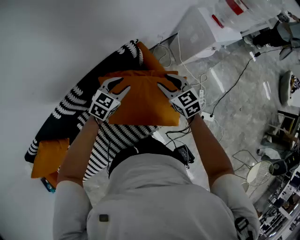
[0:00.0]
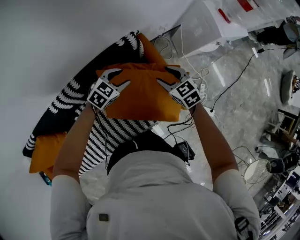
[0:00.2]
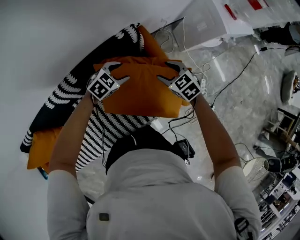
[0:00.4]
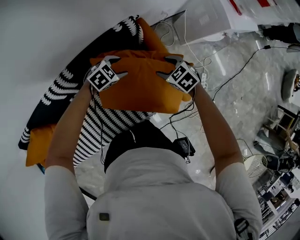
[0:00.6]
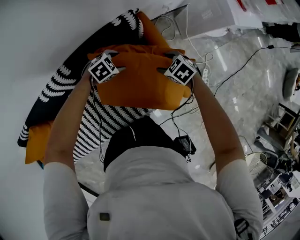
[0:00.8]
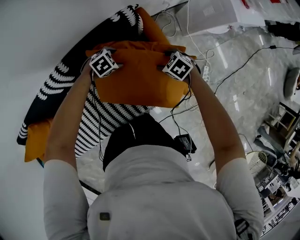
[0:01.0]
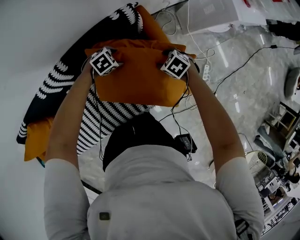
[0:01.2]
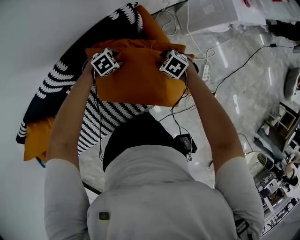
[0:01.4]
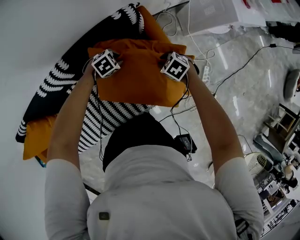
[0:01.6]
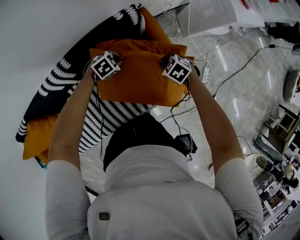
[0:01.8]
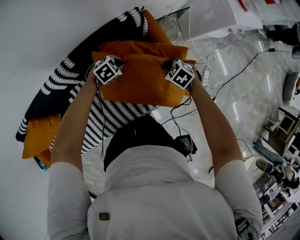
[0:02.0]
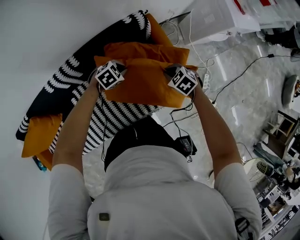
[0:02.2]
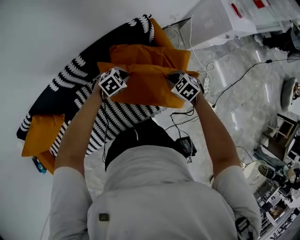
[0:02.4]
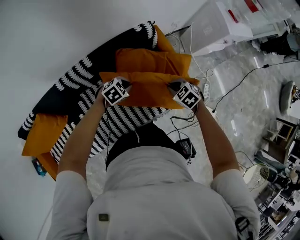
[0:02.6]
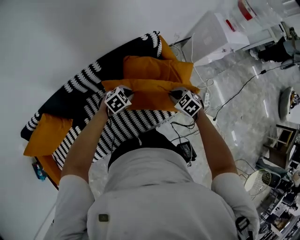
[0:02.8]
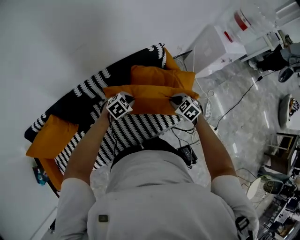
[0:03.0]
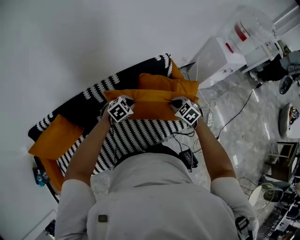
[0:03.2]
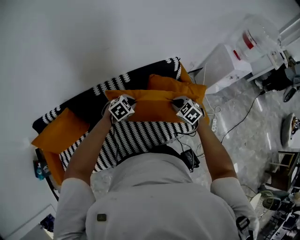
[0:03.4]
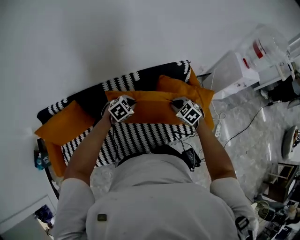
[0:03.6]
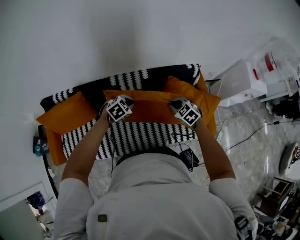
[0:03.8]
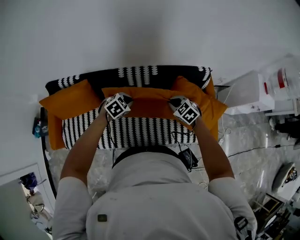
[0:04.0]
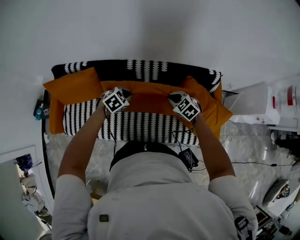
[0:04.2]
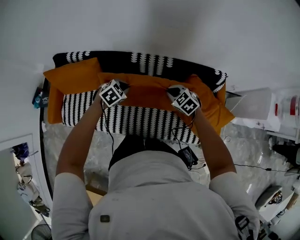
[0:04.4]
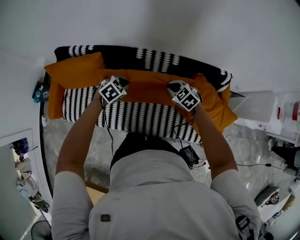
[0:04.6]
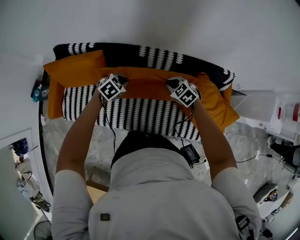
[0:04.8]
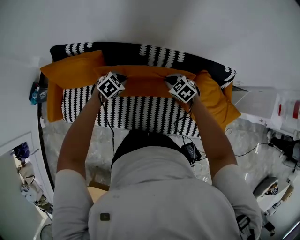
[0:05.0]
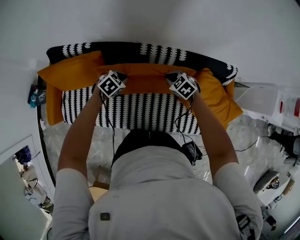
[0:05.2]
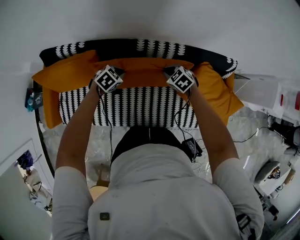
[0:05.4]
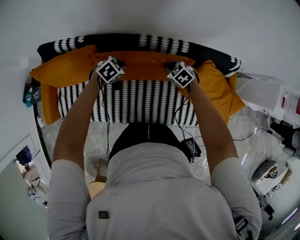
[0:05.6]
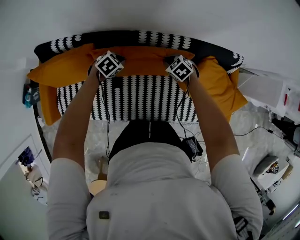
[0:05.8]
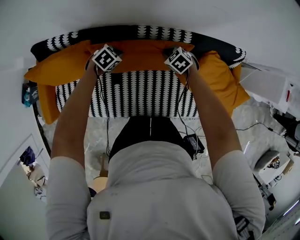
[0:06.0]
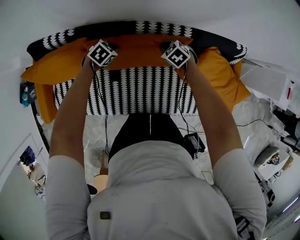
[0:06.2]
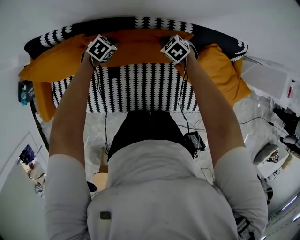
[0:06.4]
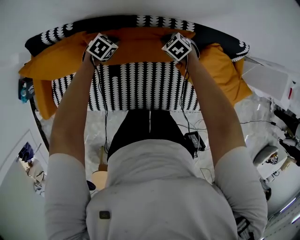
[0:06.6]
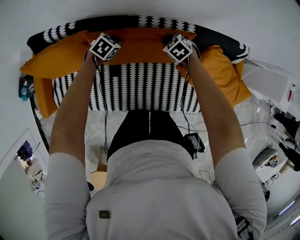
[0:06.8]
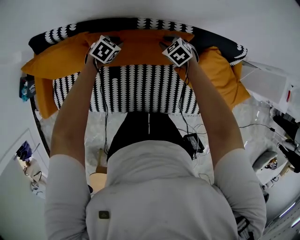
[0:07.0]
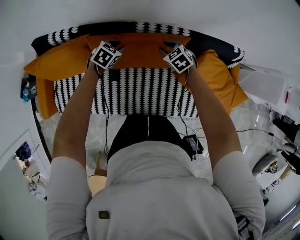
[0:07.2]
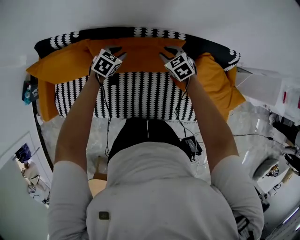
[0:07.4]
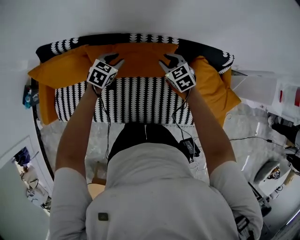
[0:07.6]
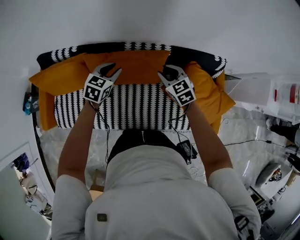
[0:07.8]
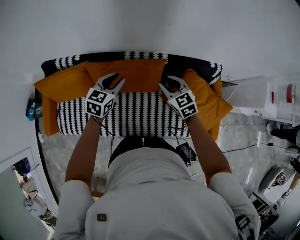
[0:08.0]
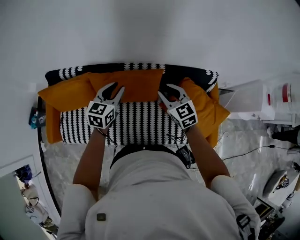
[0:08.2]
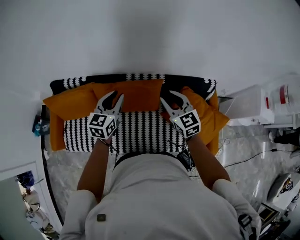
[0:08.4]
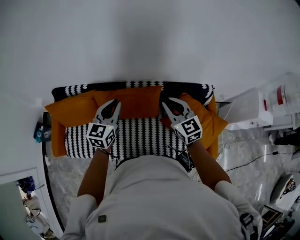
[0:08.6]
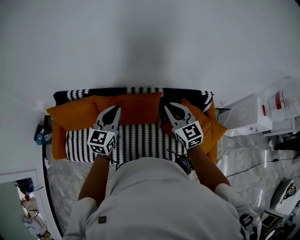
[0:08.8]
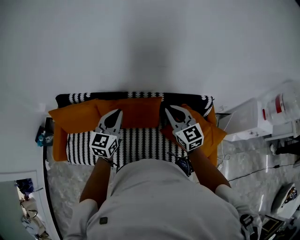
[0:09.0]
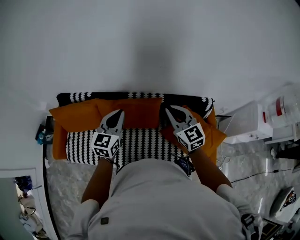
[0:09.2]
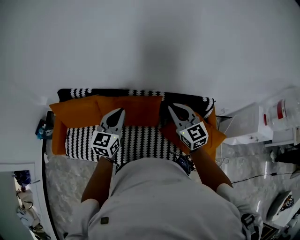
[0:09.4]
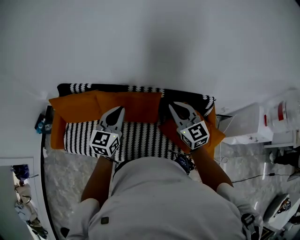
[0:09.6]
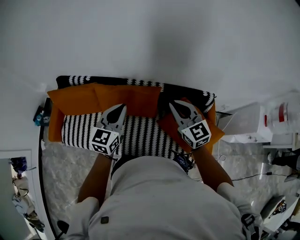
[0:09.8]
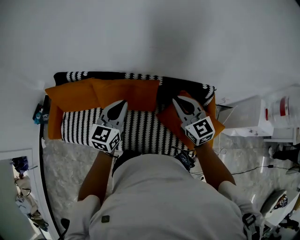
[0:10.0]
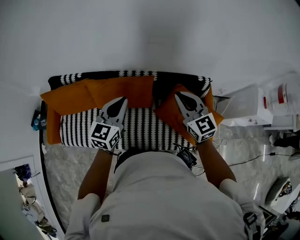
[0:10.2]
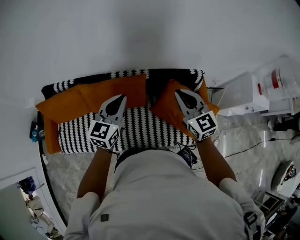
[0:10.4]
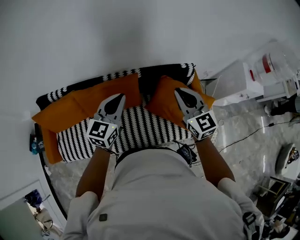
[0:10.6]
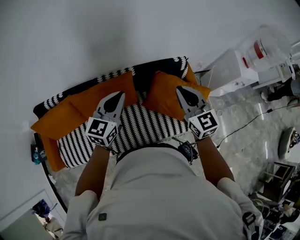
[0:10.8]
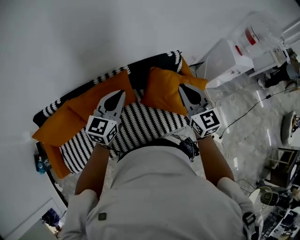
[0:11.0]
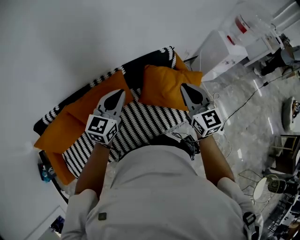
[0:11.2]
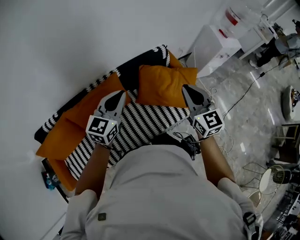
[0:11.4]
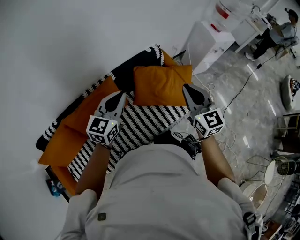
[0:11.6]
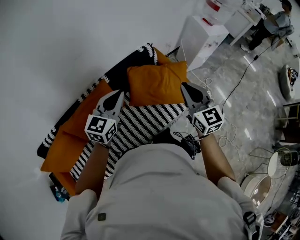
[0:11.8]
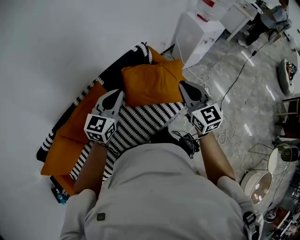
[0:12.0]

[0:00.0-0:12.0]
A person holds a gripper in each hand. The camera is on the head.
0:00.0 to 0:01.6: Both grippers travel together downward, about 25 cm. The left gripper turns by some 40 degrees, and opens, then closes once more; the right gripper tilts its fingers roughly 30 degrees downward, and opens and closes again.
0:01.6 to 0:03.0: The right gripper ends up about 25 cm from where it was, and changes its angle by approximately 20 degrees. Meanwhile the left gripper ends up roughly 30 cm from where it was.
0:03.0 to 0:04.4: The right gripper ends up roughly 30 cm from where it was, and swivels some 40 degrees; the left gripper shifts by roughly 30 cm, and swivels about 40 degrees.
0:04.4 to 0:06.0: The right gripper changes place by some 25 cm. Meanwhile the left gripper moves roughly 25 cm.
0:06.0 to 0:07.6: Both grippers move upward, approximately 15 cm. The left gripper turns by roughly 30 degrees, and opens up; the right gripper swivels approximately 20 degrees, and opens.
0:07.6 to 0:09.0: The grippers both shift upward and backward by approximately 30 cm. The left gripper tilts its fingers roughly 40 degrees upward, and closes up. Meanwhile the right gripper tilts its fingers about 30 degrees upward, and closes up.
0:09.0 to 0:10.4: Both grippers travel together to the right, about 10 cm.
0:10.4 to 0:12.0: The left gripper changes place by some 20 cm, and rotates some 40 degrees, while the right gripper moves about 25 cm, and turns by roughly 40 degrees.

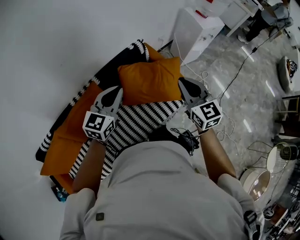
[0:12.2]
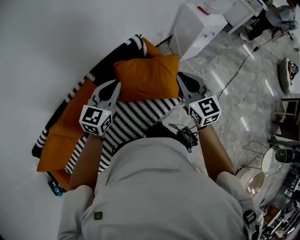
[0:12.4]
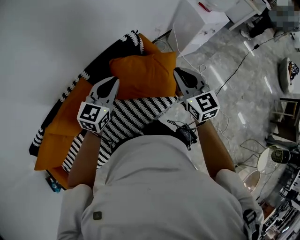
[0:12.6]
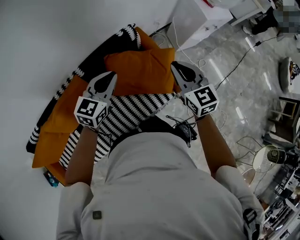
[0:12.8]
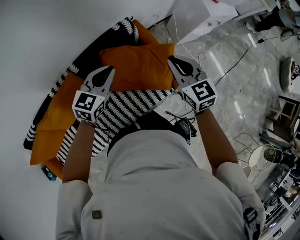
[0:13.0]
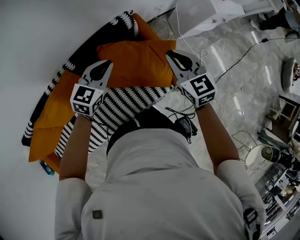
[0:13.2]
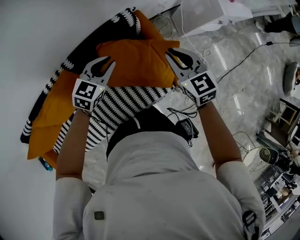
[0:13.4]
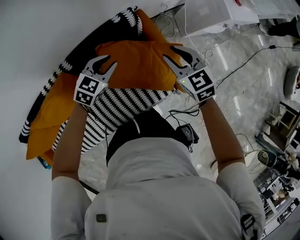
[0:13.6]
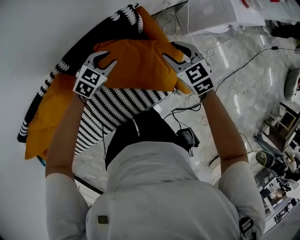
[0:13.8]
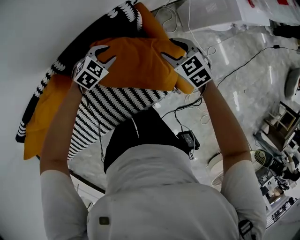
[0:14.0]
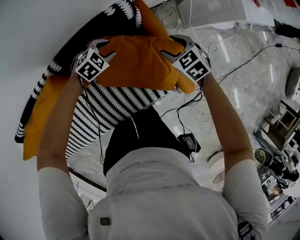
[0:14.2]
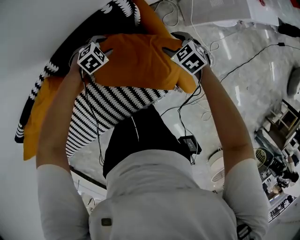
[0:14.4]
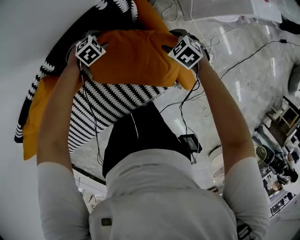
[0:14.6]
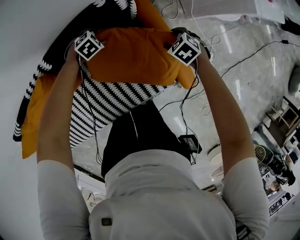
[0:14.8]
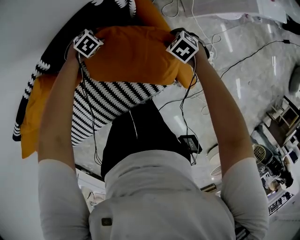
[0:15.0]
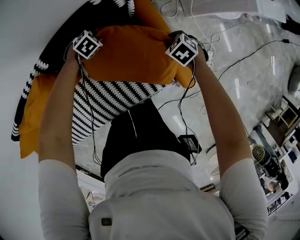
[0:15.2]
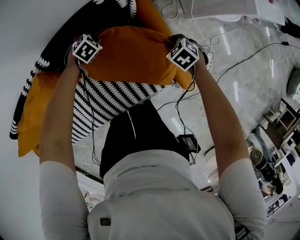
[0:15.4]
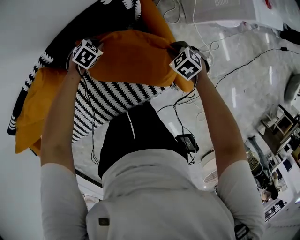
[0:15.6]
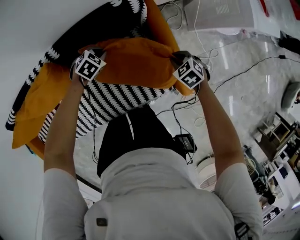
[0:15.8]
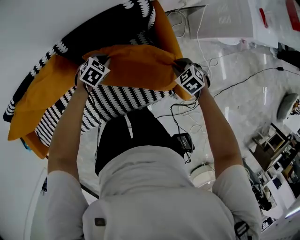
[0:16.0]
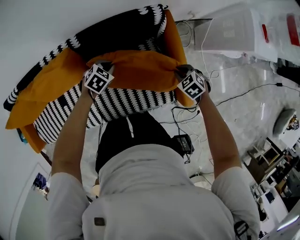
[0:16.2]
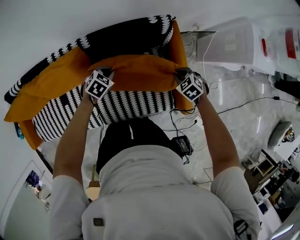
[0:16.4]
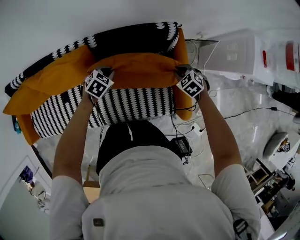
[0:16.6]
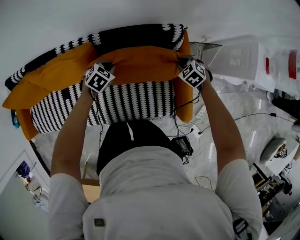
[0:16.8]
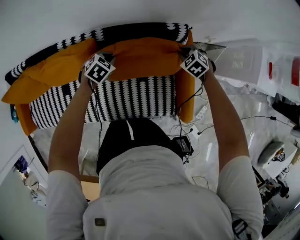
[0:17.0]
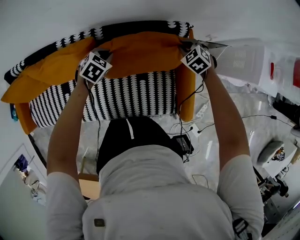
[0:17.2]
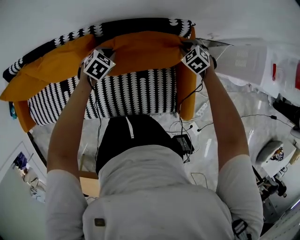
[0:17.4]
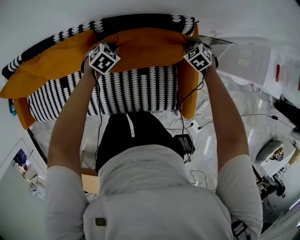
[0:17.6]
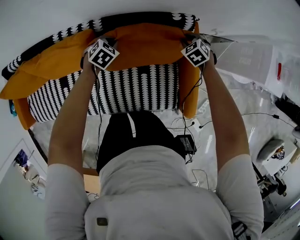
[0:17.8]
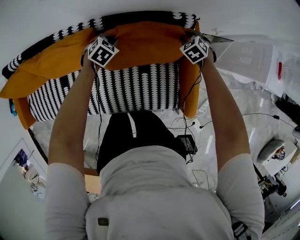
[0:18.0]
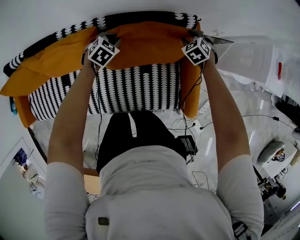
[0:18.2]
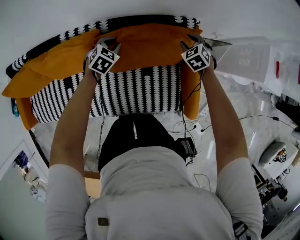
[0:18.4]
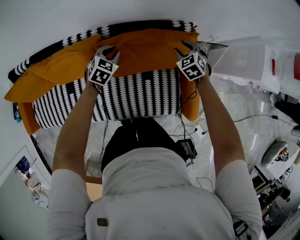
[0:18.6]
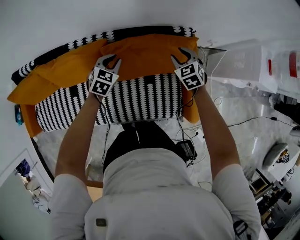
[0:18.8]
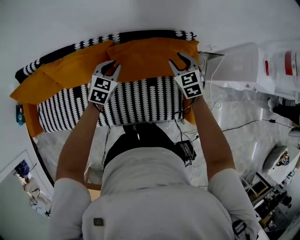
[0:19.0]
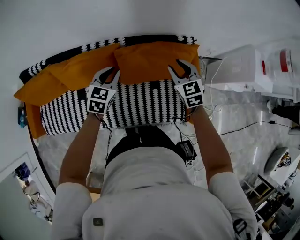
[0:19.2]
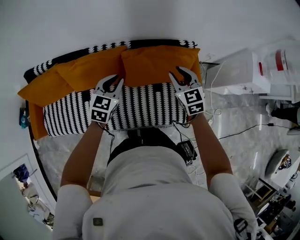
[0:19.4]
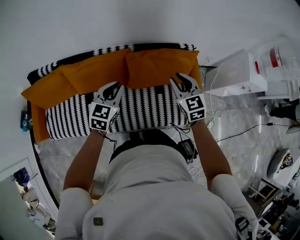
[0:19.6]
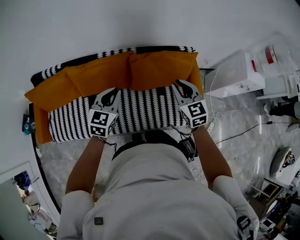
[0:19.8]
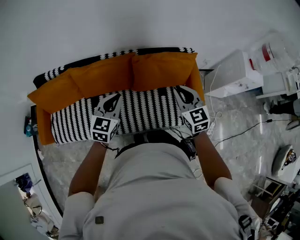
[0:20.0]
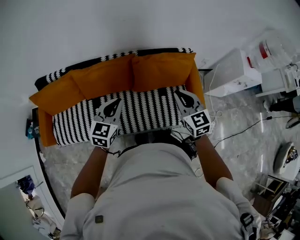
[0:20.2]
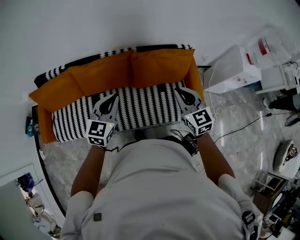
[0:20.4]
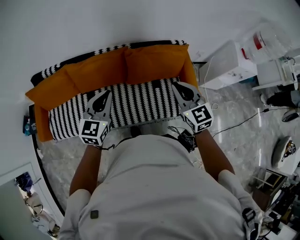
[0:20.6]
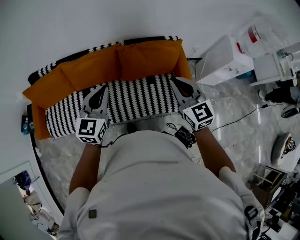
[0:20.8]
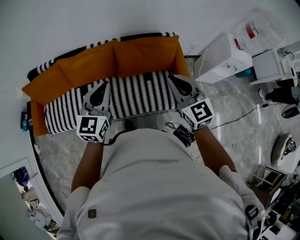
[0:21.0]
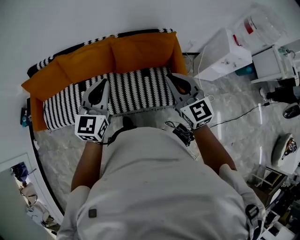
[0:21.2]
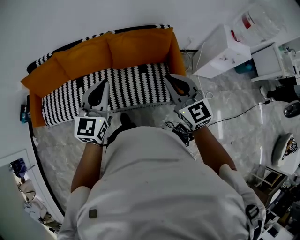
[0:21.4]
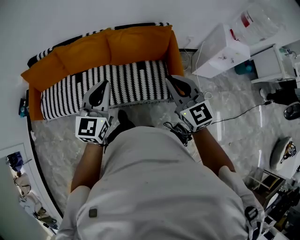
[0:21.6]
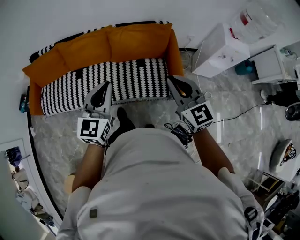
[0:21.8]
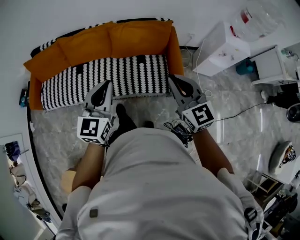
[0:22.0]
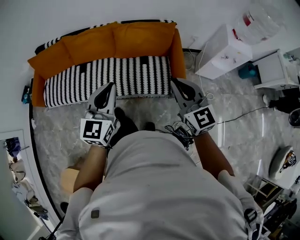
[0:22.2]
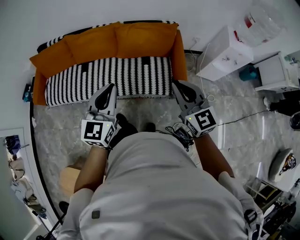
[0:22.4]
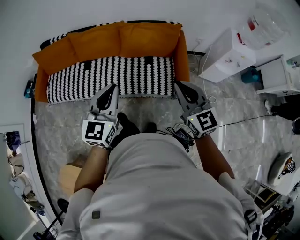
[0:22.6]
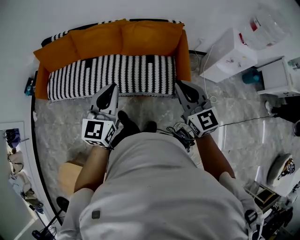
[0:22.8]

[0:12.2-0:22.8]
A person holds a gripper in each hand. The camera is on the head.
0:12.2 to 0:13.8: The left gripper heads downward and forward, covering approximately 40 cm, points its fingers some 30 degrees further downward, and opens its fingers. The right gripper heads forward and downward, covering some 40 cm, swivels some 40 degrees, and opens.
0:13.8 to 0:15.2: The grippers both shift downward by approximately 25 cm. The left gripper rotates roughly 30 degrees; the right gripper tilts its fingers roughly 30 degrees downward.
0:15.2 to 0:16.8: The left gripper shifts by roughly 25 cm, and rotates approximately 40 degrees. Meanwhile the right gripper shifts by approximately 20 cm, and changes its angle by roughly 30 degrees.
0:16.8 to 0:18.2: The grippers both shift forward by approximately 10 cm. The right gripper opens its fingers.
0:18.2 to 0:19.8: The grippers both shift upward, backward and to the left by roughly 50 cm. The left gripper tips its fingers upward by about 40 degrees. Meanwhile the right gripper angles its fingers upward, by approximately 40 degrees, and closes its fingers.
0:19.8 to 0:21.2: The two grippers go about 25 cm backward, upward and to the right.
0:21.2 to 0:22.8: Both grippers travel together backward, some 20 cm.

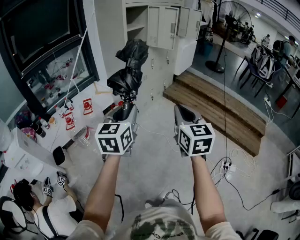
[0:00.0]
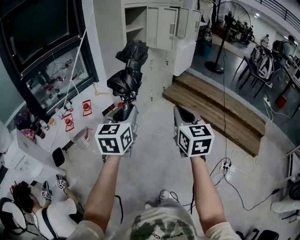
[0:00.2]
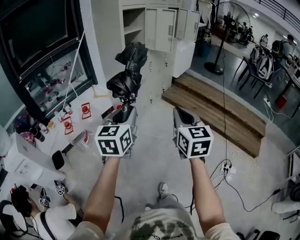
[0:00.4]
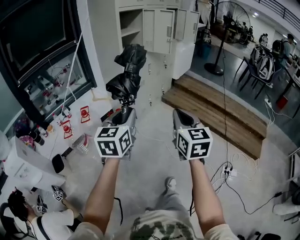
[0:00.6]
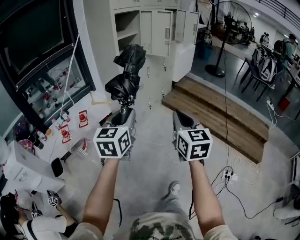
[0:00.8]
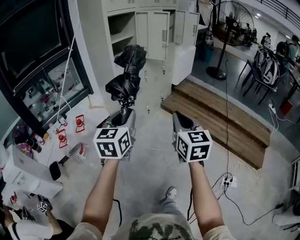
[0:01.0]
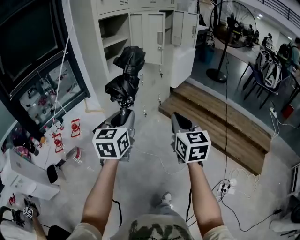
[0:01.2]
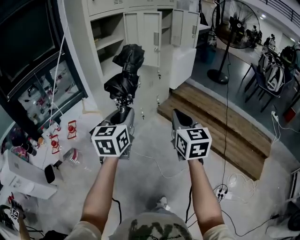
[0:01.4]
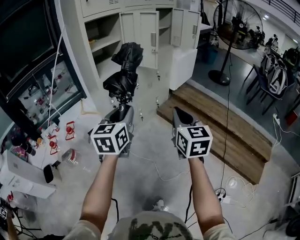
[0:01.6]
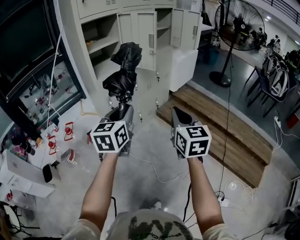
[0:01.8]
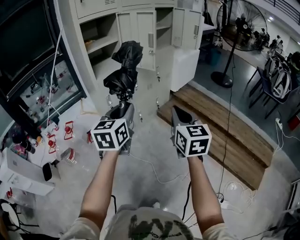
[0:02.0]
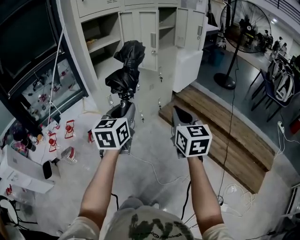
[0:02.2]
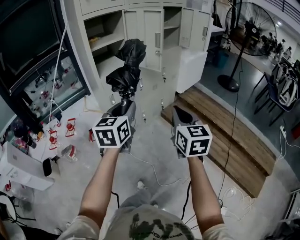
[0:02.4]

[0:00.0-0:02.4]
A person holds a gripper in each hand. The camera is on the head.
0:00.0 to 0:01.2: Both grippers travel together forward and to the right, some 25 cm.
0:01.2 to 0:02.4: The grippers both shift forward and to the right by about 20 cm.
